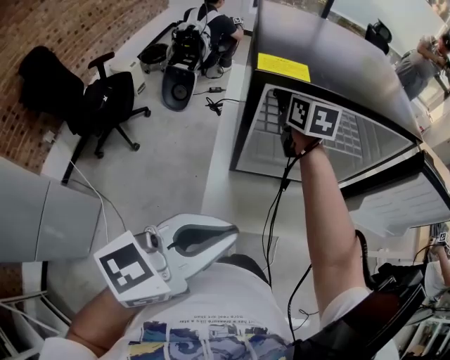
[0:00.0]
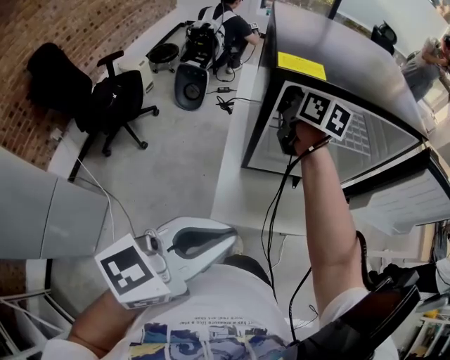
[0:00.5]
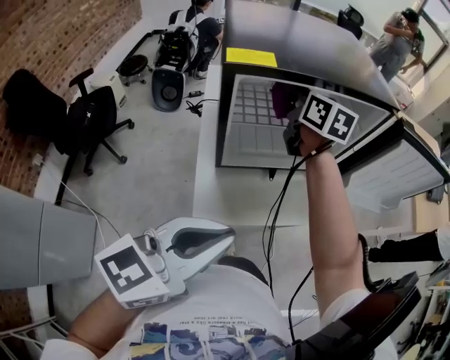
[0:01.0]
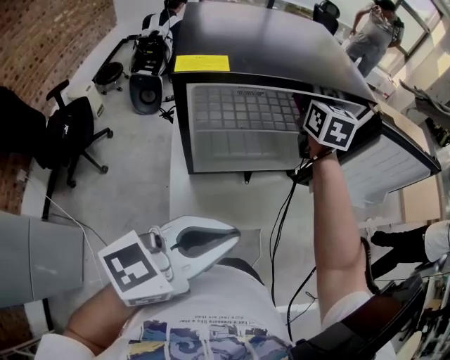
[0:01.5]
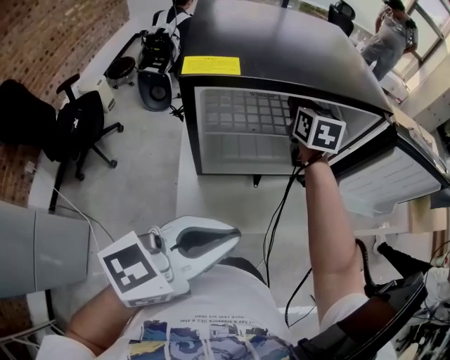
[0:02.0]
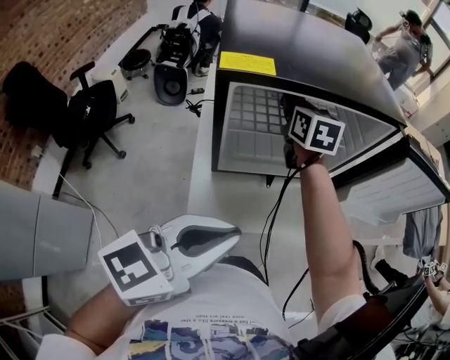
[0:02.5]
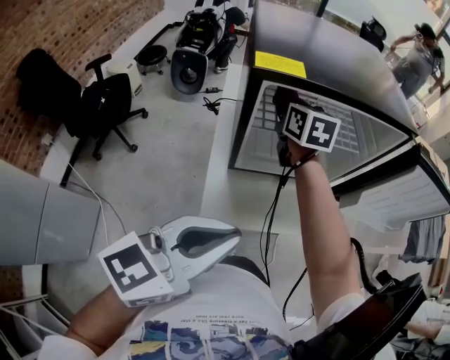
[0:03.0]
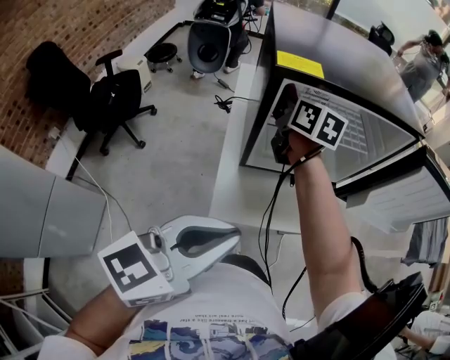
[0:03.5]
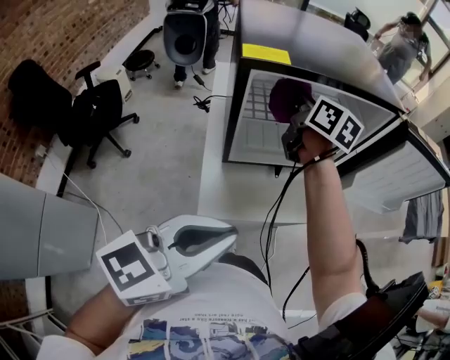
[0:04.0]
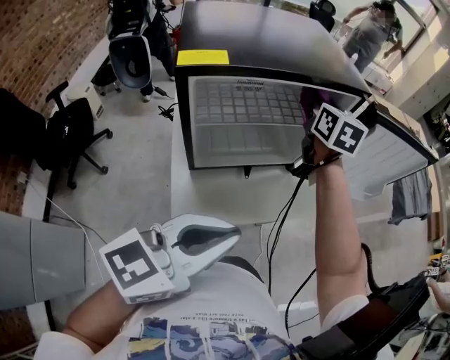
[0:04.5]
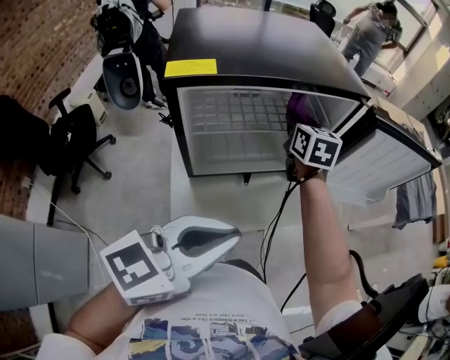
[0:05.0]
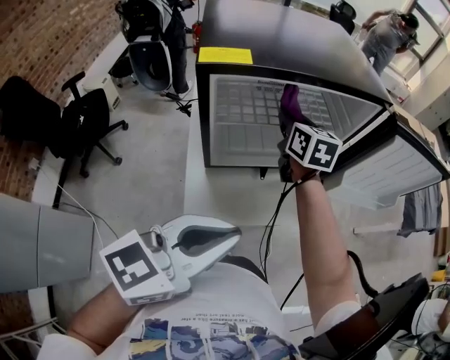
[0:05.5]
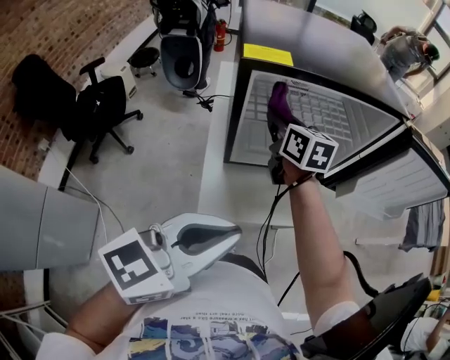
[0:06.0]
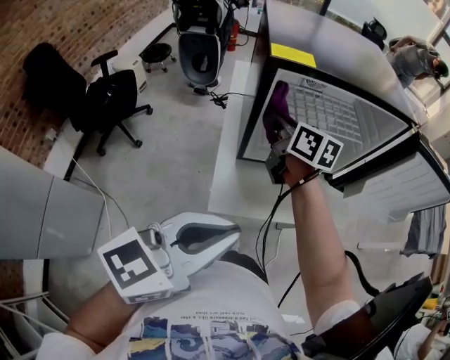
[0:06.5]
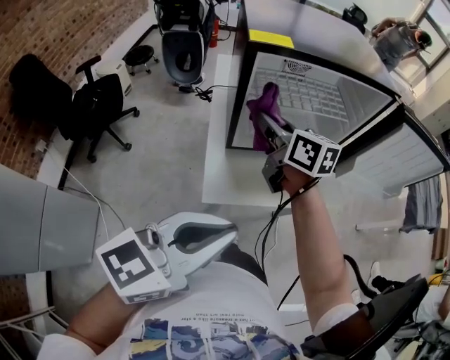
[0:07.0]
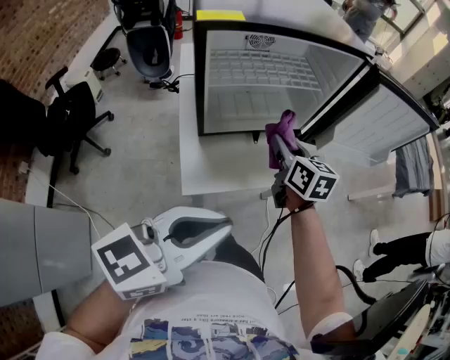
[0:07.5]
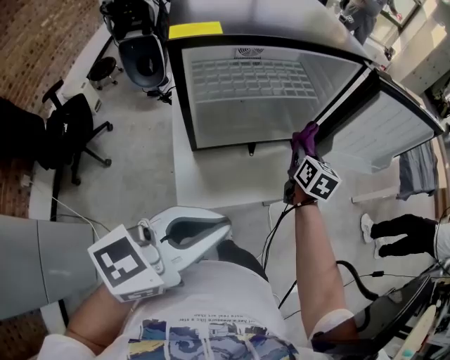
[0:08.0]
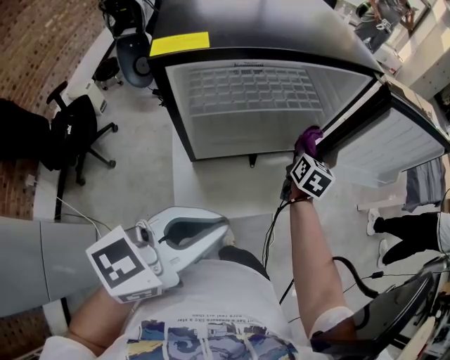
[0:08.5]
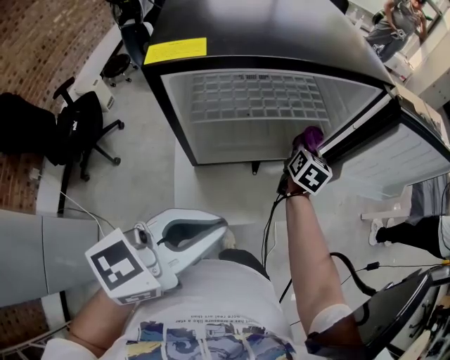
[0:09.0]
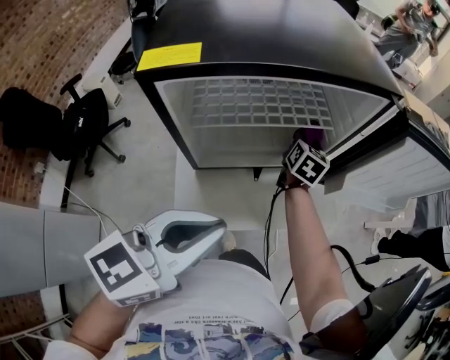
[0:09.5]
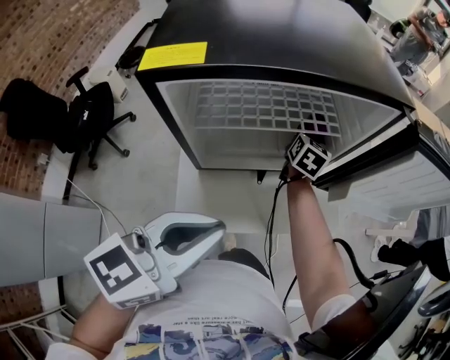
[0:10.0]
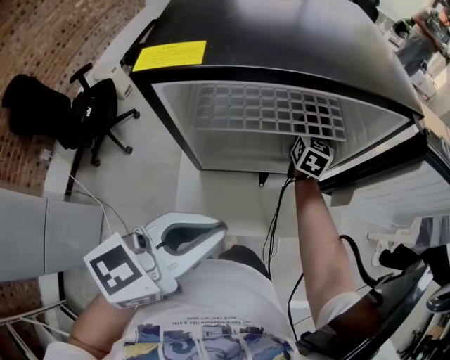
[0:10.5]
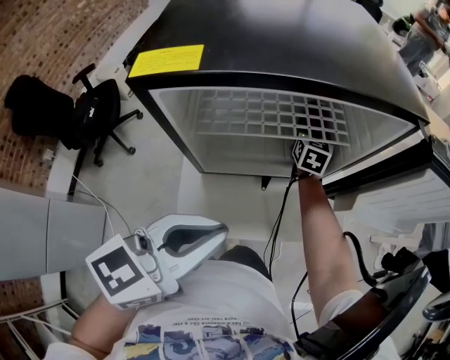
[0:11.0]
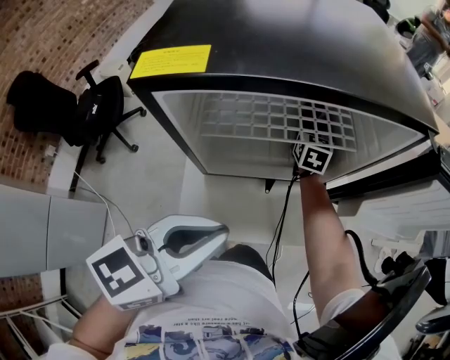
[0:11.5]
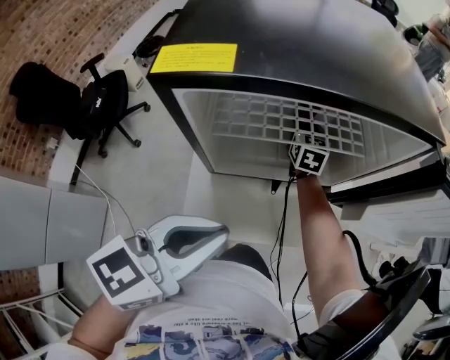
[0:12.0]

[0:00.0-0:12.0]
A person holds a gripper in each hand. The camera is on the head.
0:00.0 to 0:02.0: The right gripper heads to the right, covering approximately 15 cm, while the left gripper is displaced to the right by about 5 cm.
0:02.0 to 0:04.0: The right gripper moves backward, to the left and upward, some 15 cm, and rotates about 30 degrees; the left gripper heads backward and to the left, covering approximately 10 cm.
0:04.0 to 0:06.0: The right gripper shifts roughly 5 cm downward, and travels to the right and back again, about 15 cm each way.
0:06.0 to 0:08.0: The right gripper ends up approximately 25 cm from where it was, and turns by some 30 degrees.
0:08.0 to 0:10.0: The left gripper moves forward, about 10 cm. Meanwhile the right gripper moves forward and to the left, roughly 20 cm.
0:10.0 to 0:12.0: The right gripper travels to the left by some 10 cm, and rotates roughly 20 degrees.

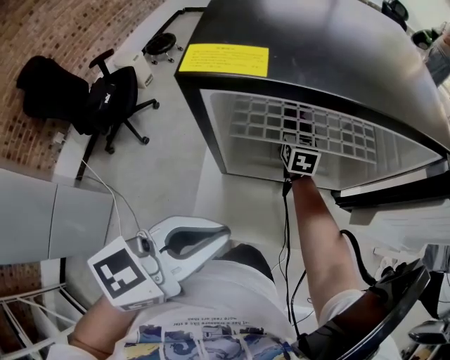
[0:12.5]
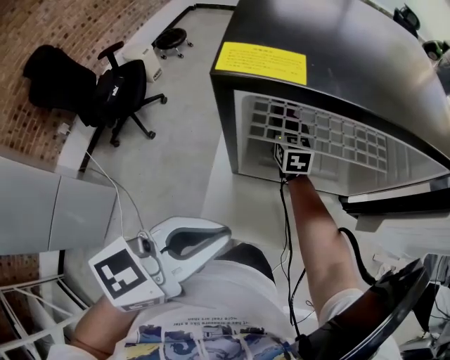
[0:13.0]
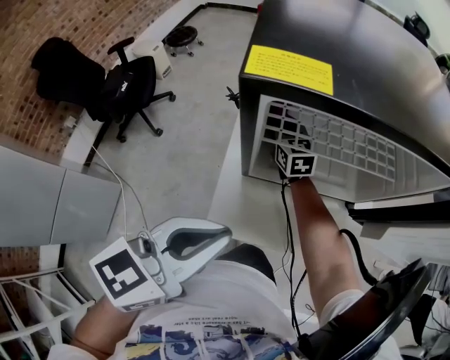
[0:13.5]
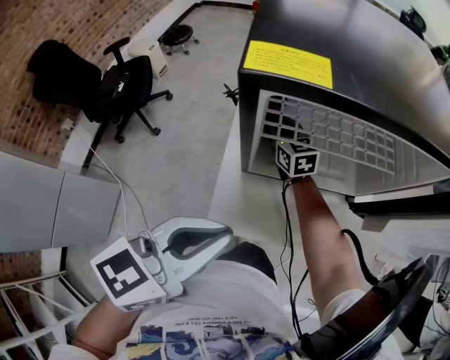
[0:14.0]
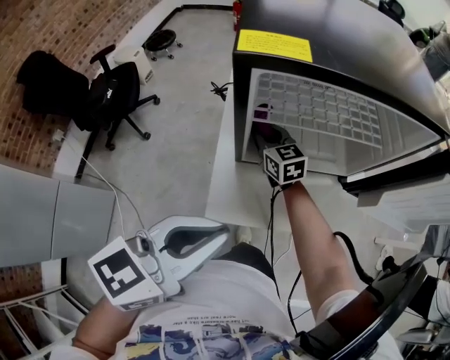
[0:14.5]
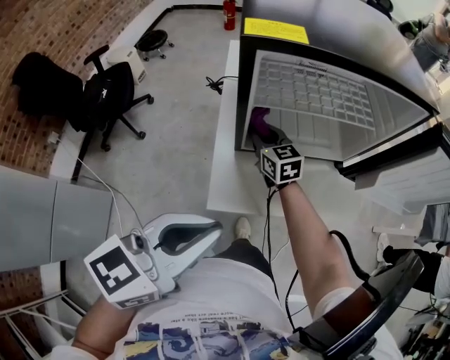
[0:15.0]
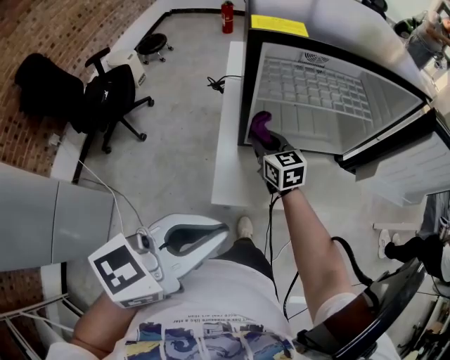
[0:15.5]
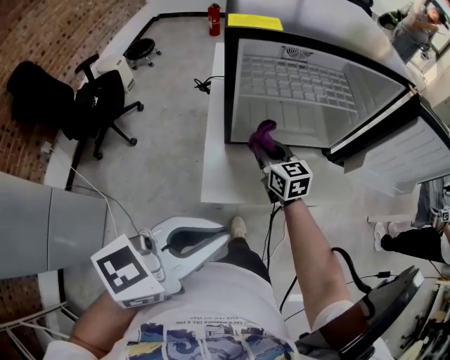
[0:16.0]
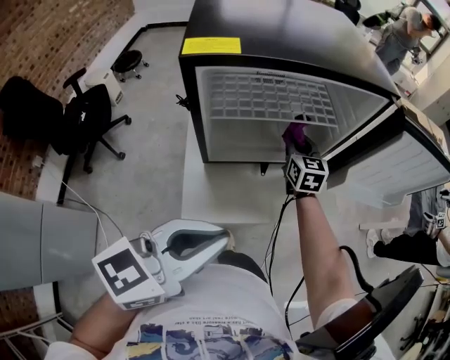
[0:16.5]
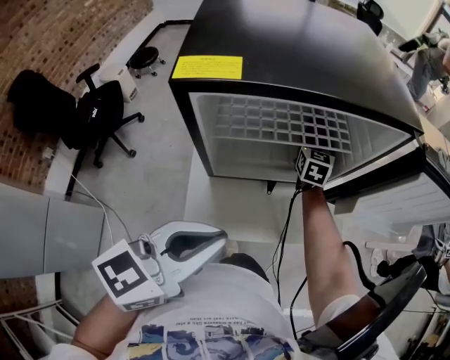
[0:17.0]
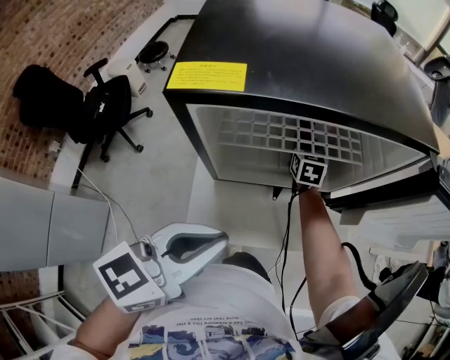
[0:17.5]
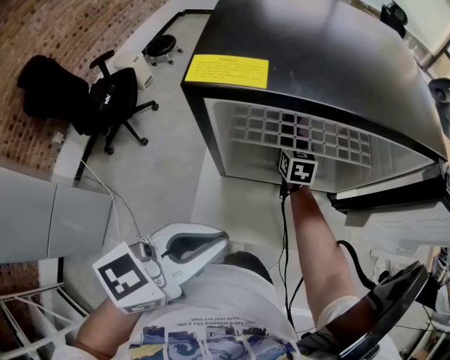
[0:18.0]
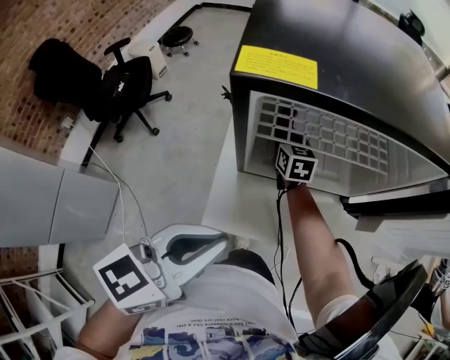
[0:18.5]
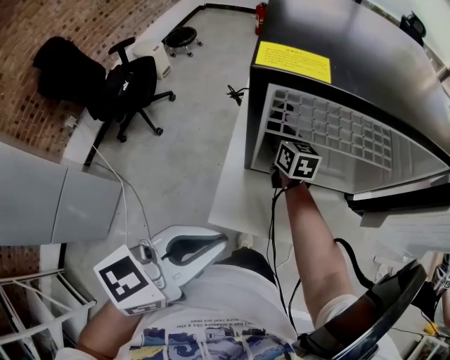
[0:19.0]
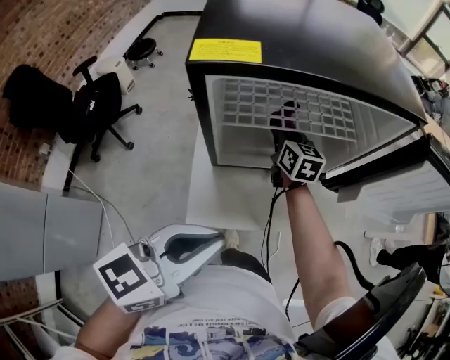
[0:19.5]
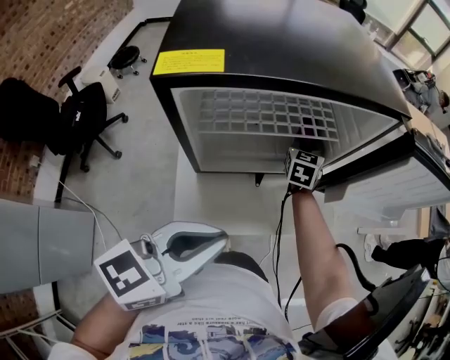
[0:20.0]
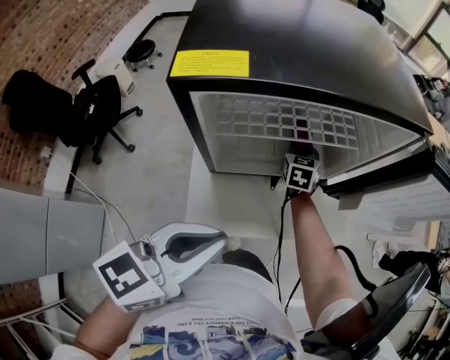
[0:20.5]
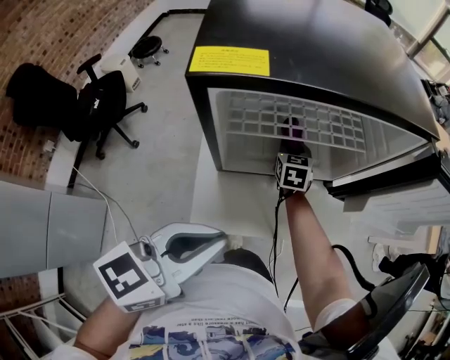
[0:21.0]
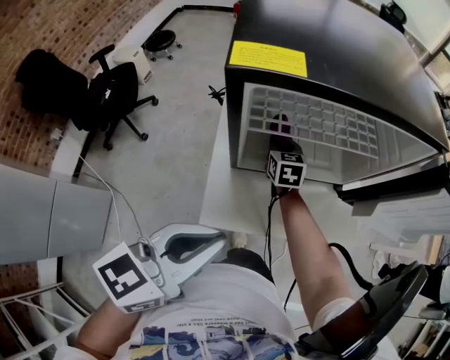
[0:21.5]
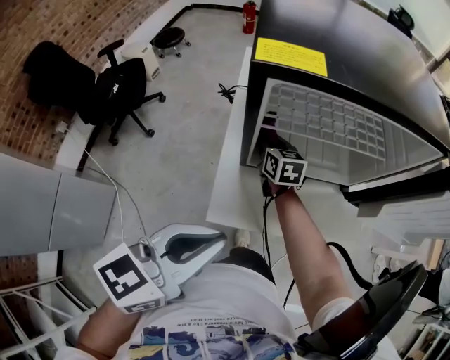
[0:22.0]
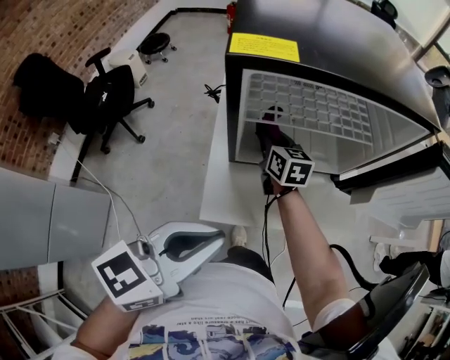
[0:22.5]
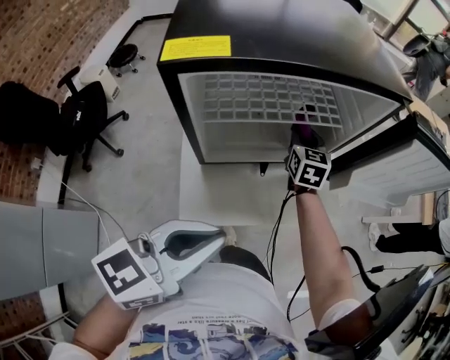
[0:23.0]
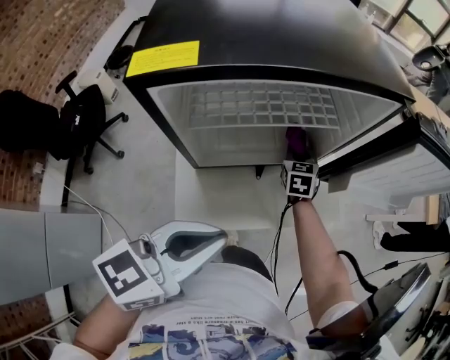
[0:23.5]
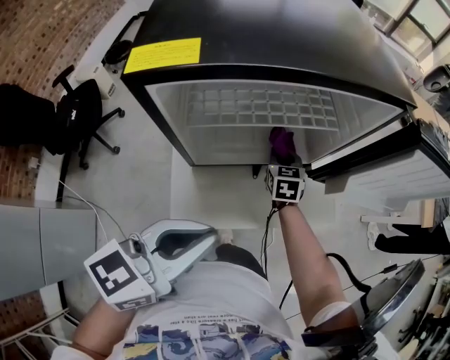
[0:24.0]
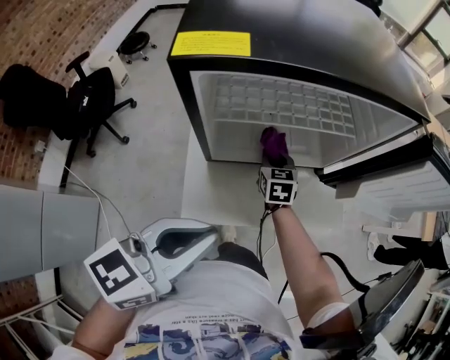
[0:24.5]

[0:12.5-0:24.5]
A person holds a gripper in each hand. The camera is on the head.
0:12.5 to 0:14.5: The right gripper is displaced backward and to the left by about 15 cm, and turns by roughly 20 degrees; the left gripper ends up about 5 cm from where it was.
0:14.5 to 0:16.5: The right gripper travels to the right by roughly 25 cm, and rotates some 30 degrees. Meanwhile the left gripper is displaced to the right by approximately 5 cm, and travels backward and back again, approximately 10 cm each way.
0:16.5 to 0:18.5: The right gripper moves to the left, some 20 cm; the left gripper heads to the left, covering about 5 cm.
0:18.5 to 0:20.5: The right gripper goes upward and returns, about 5 cm each way, and swivels about 30 degrees.
0:20.5 to 0:22.5: The left gripper heads backward, covering roughly 5 cm. Meanwhile the right gripper goes some 20 cm to the left, backward and upward, and turns by approximately 30 degrees.
0:22.5 to 0:24.5: The right gripper heads to the right and downward, covering about 15 cm, and swivels about 20 degrees.

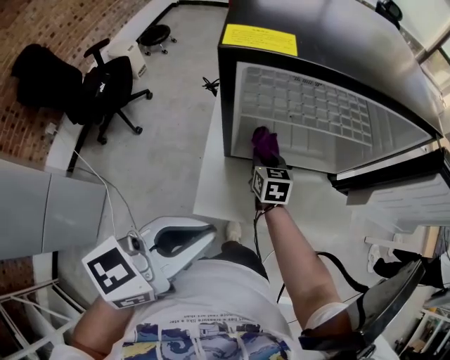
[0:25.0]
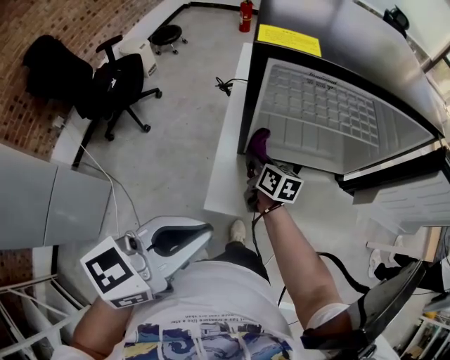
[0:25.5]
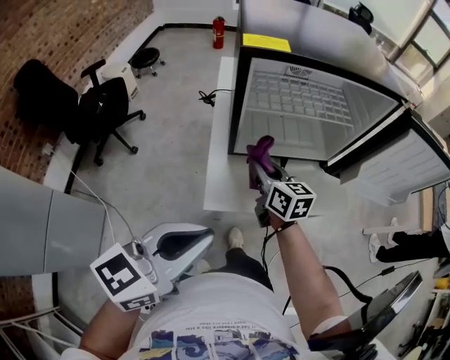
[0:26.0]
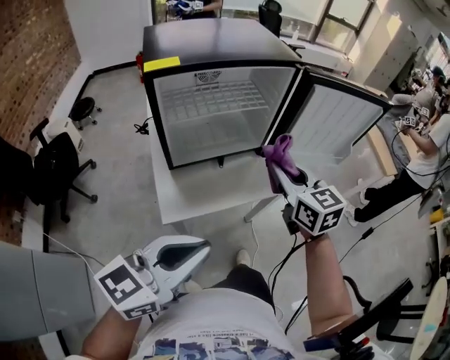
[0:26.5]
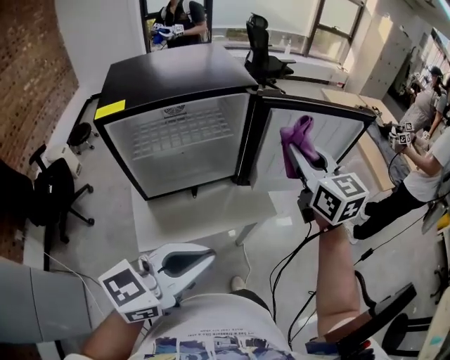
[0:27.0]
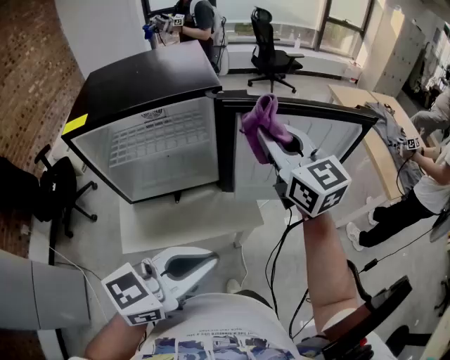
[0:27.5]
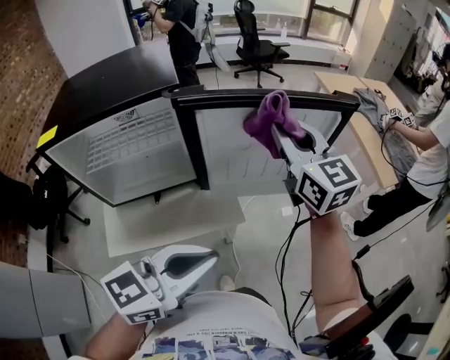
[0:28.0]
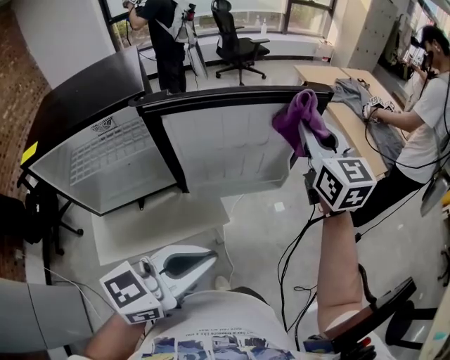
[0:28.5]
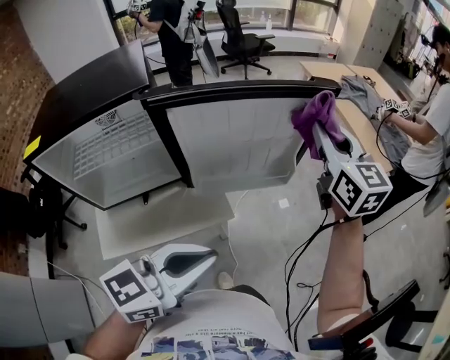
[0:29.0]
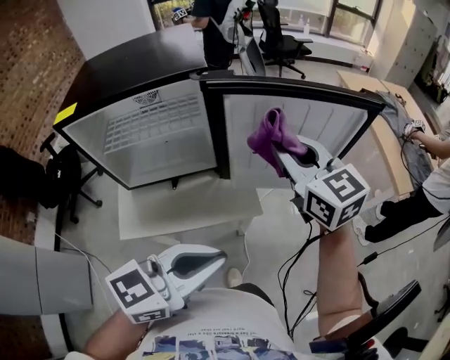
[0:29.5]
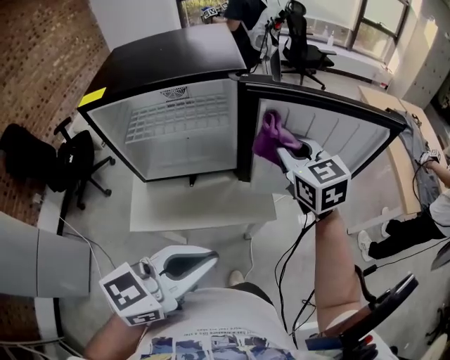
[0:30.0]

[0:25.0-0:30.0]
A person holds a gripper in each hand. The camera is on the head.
0:25.0 to 0:27.5: The left gripper moves some 30 cm, and changes its angle by some 20 degrees. Meanwhile the right gripper goes about 35 cm upward, and tips its fingers upward by roughly 30 degrees.
0:27.5 to 0:30.0: The right gripper shifts some 10 cm downward, and goes to the right and returns, some 25 cm each way. The left gripper goes to the right and returns, approximately 10 cm each way.
